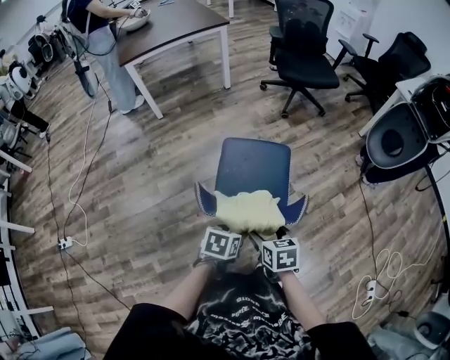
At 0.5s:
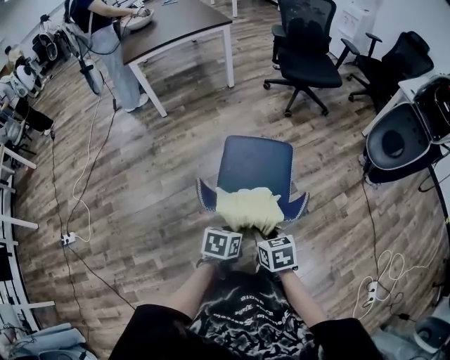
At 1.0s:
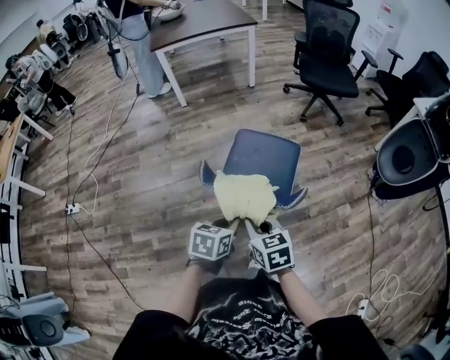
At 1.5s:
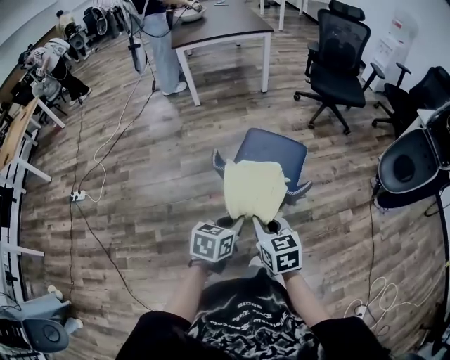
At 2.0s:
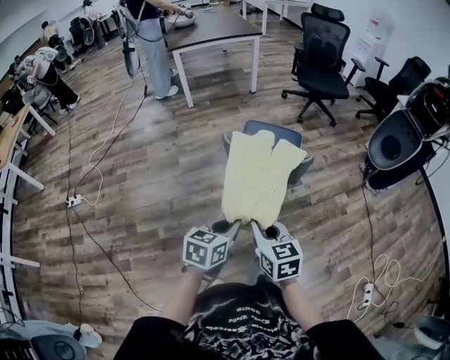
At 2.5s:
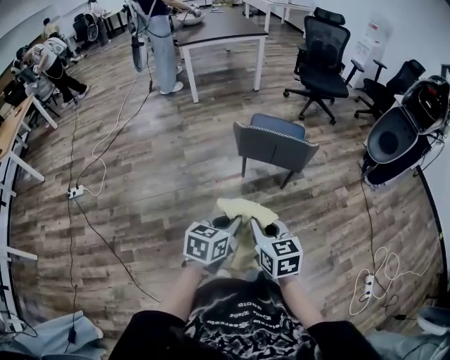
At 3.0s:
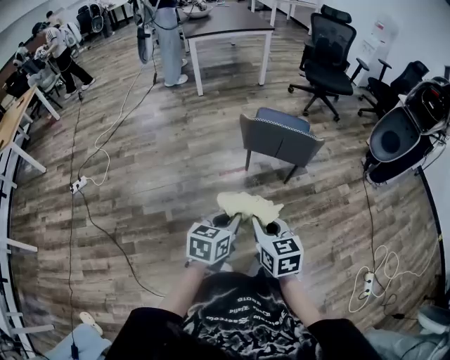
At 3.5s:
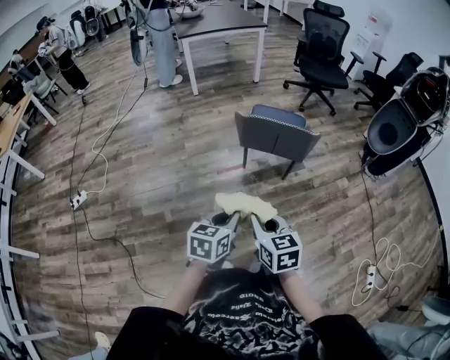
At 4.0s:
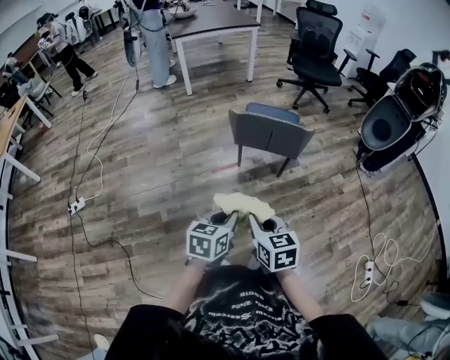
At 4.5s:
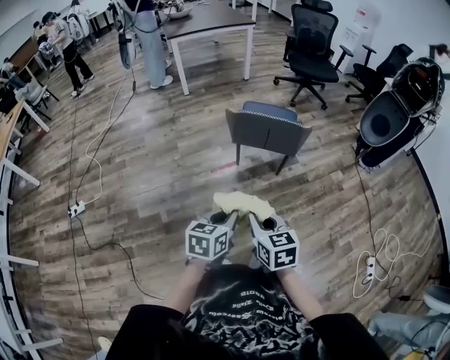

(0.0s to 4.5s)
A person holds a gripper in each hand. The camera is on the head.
0.0s - 2.0s: The grippers both shift backward and upward by about 25 cm. The left gripper rotates some 30 degrees, and closes. Meanwhile the right gripper swivels some 30 degrees, and closes its fingers.
2.0s - 4.5s: The left gripper goes roughly 10 cm backward and to the left; the right gripper is displaced backward by approximately 10 cm.

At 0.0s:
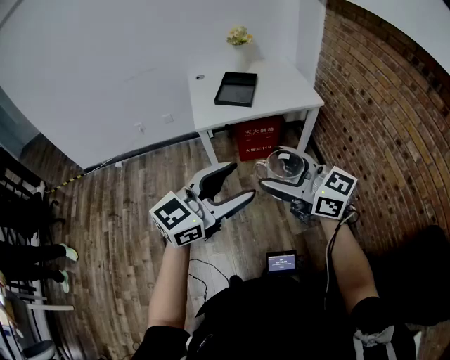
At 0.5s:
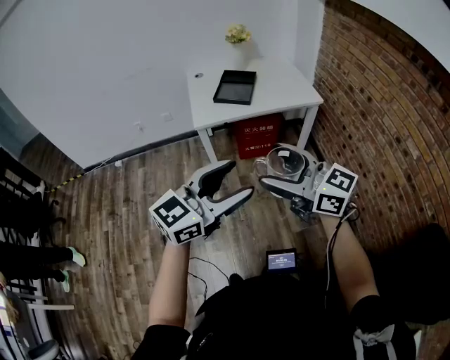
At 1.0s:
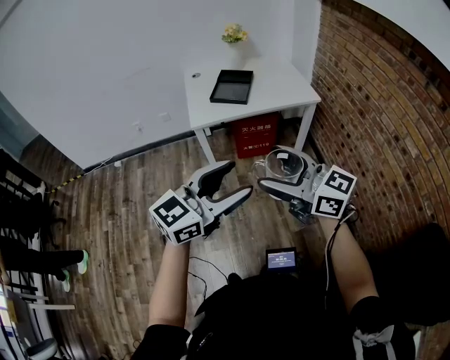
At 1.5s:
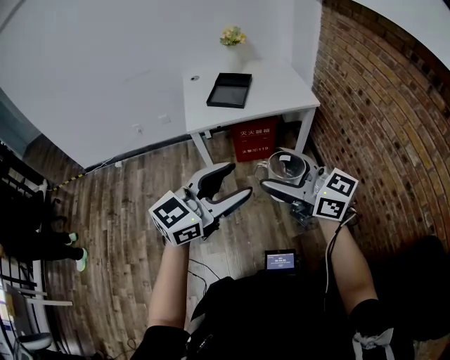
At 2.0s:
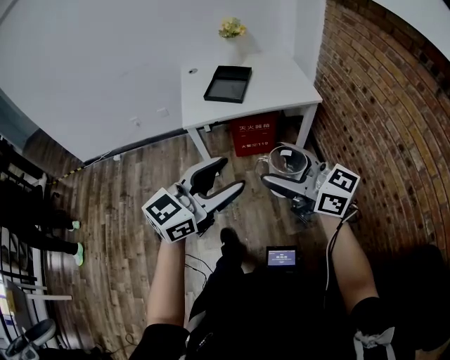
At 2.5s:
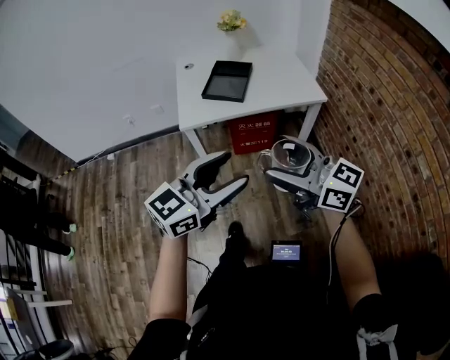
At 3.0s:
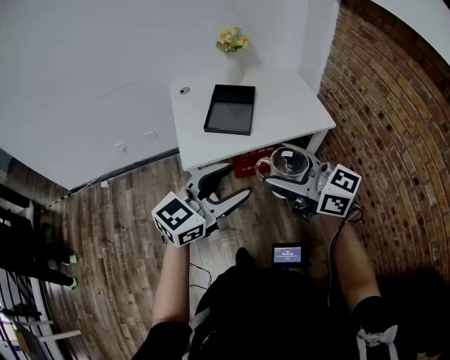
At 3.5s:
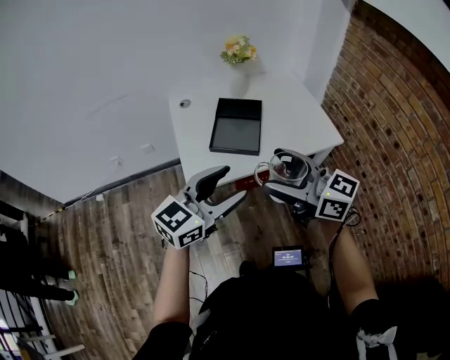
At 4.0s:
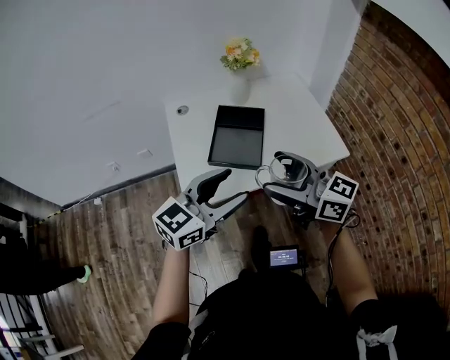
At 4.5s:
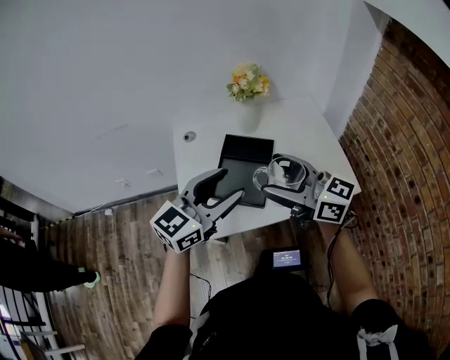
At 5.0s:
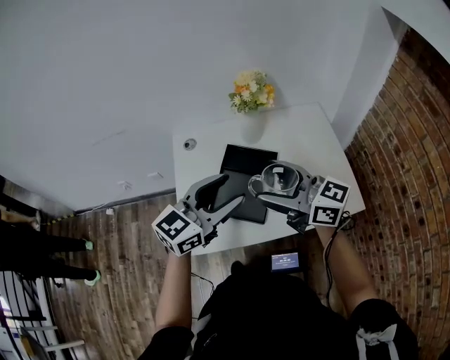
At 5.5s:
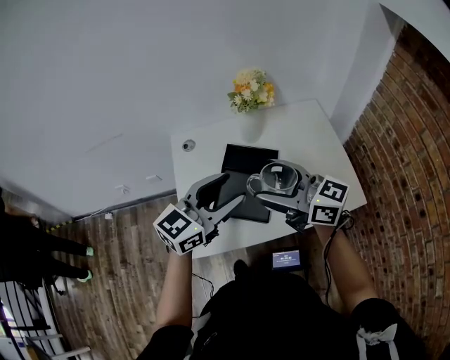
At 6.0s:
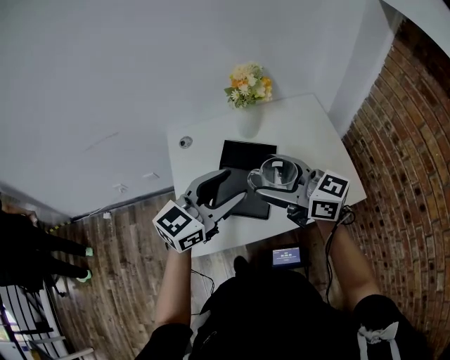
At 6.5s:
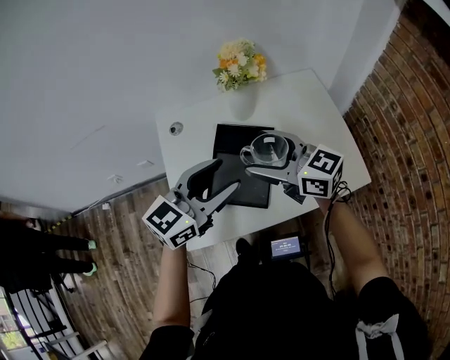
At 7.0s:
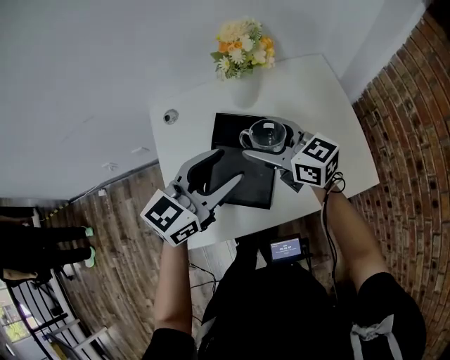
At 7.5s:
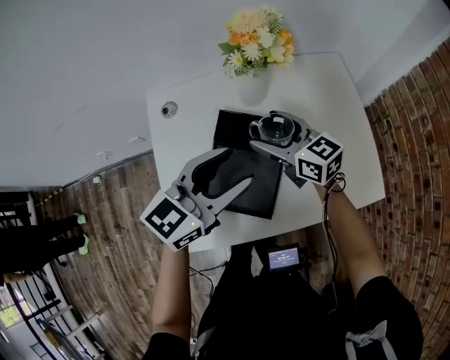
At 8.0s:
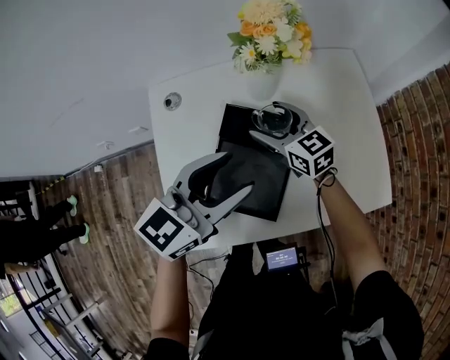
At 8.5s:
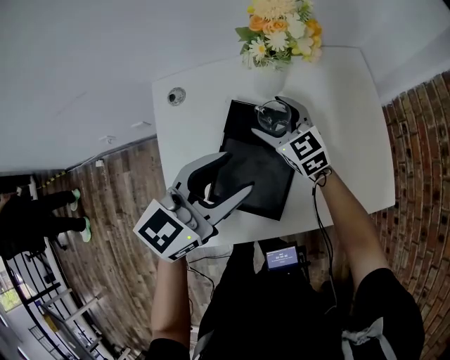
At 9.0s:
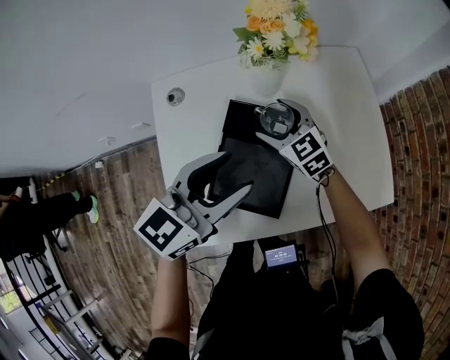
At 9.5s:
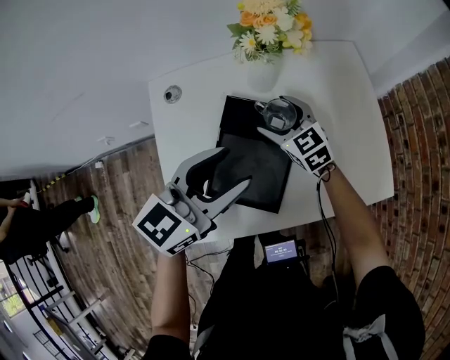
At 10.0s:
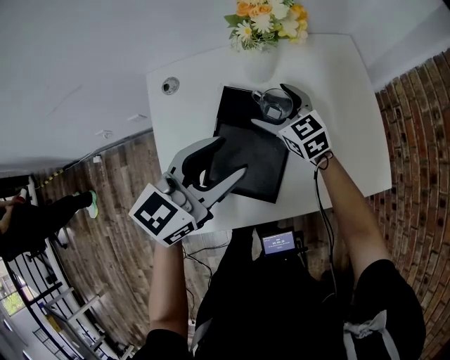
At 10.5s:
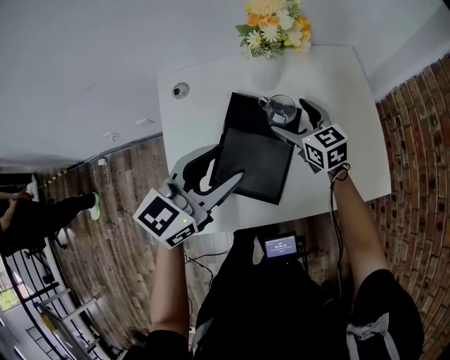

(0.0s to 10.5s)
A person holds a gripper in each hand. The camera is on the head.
0.0s - 2.0s: The left gripper heads to the right and forward, covering roughly 10 cm. The right gripper is displaced to the right by about 10 cm.
2.0s - 4.0s: The two grippers travel together, forward, some 40 cm.
4.0s - 6.5s: Both grippers travel together forward, roughly 25 cm.
6.5s - 8.5s: The right gripper shifts some 25 cm downward and forward, and changes its angle by roughly 30 degrees. Meanwhile the left gripper travels forward and downward by about 10 cm.
8.5s - 10.5s: The right gripper is displaced to the right by about 5 cm.

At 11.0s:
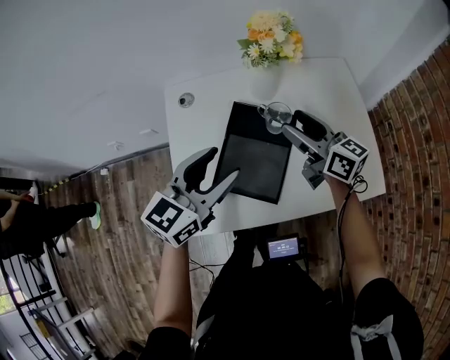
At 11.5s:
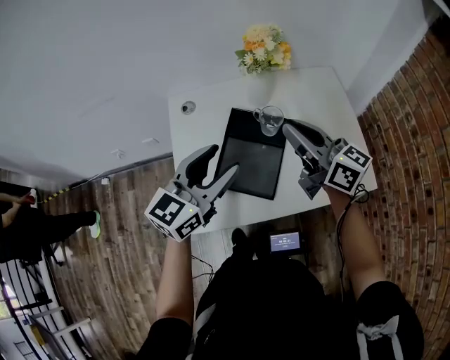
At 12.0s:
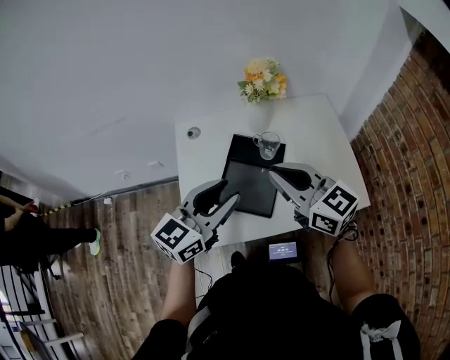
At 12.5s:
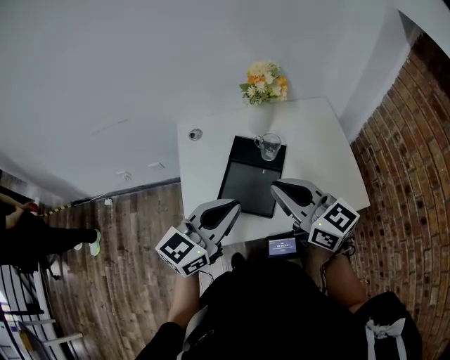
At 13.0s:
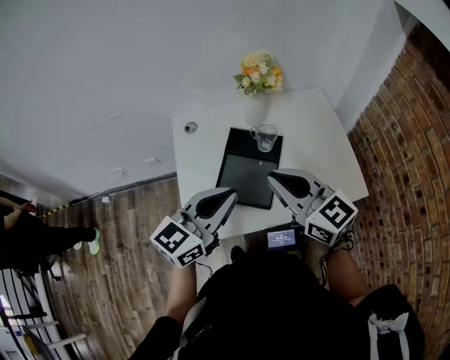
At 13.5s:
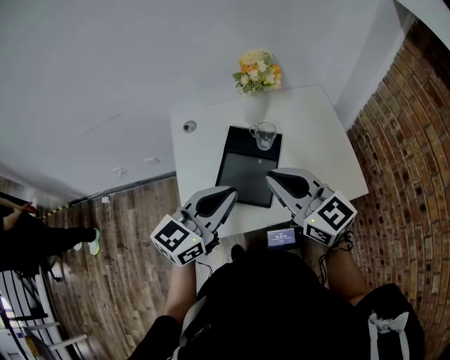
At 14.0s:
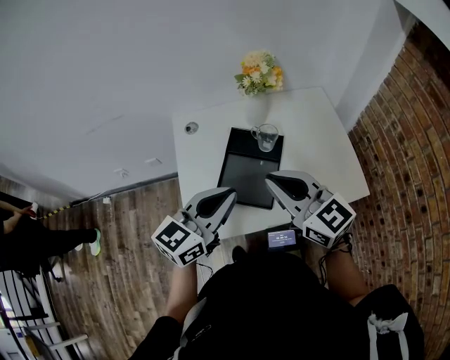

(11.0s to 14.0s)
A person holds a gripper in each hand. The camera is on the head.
11.0s - 12.5s: The right gripper is displaced backward and upward by about 20 cm, and closes up, while the left gripper goes approximately 10 cm backward and upward, and closes.
12.5s - 14.0s: The grippers move only a little.

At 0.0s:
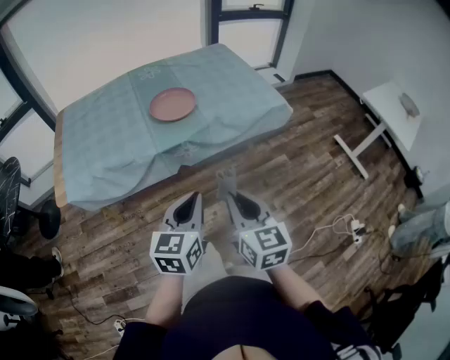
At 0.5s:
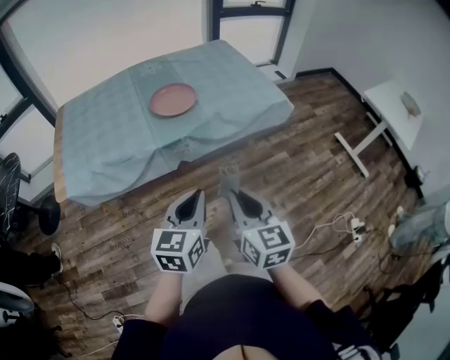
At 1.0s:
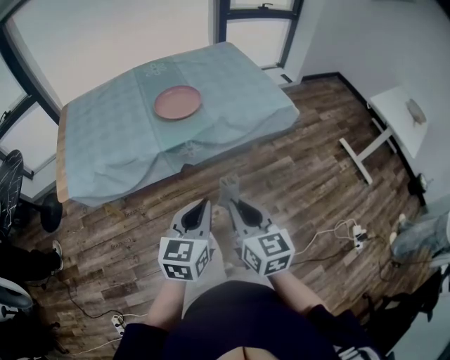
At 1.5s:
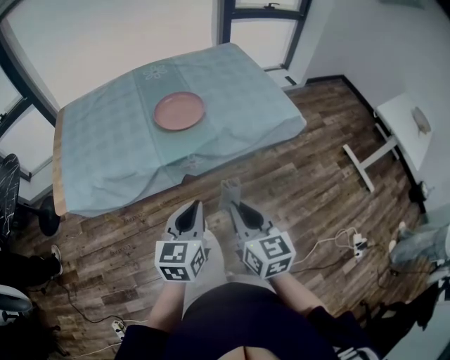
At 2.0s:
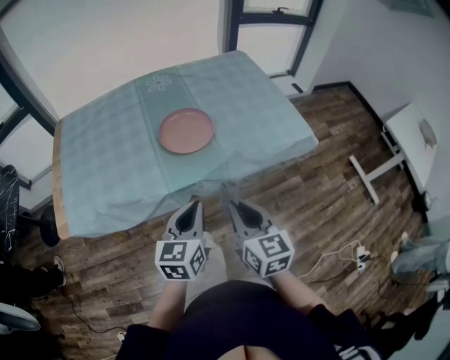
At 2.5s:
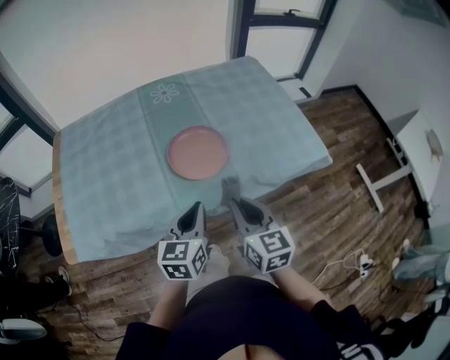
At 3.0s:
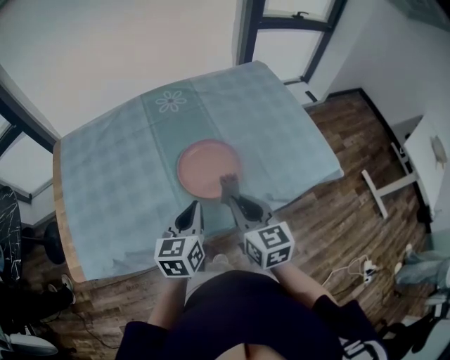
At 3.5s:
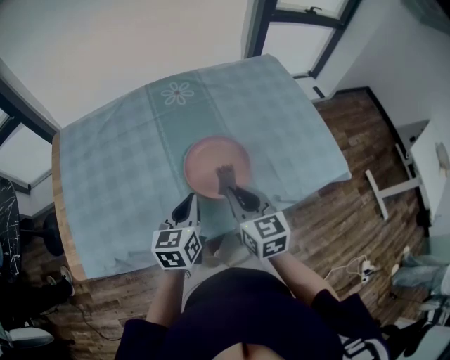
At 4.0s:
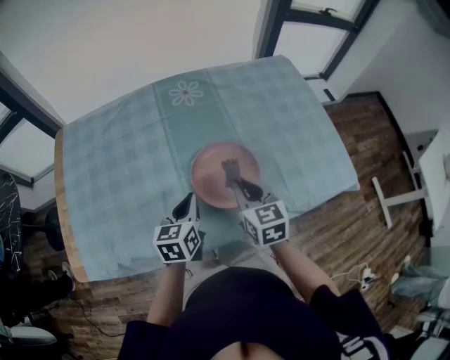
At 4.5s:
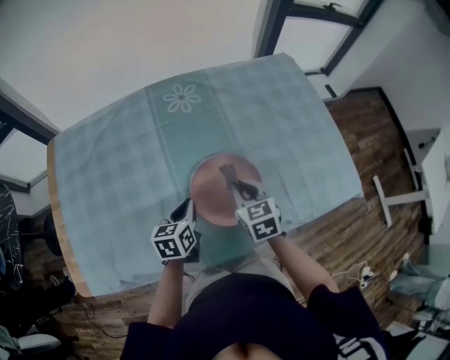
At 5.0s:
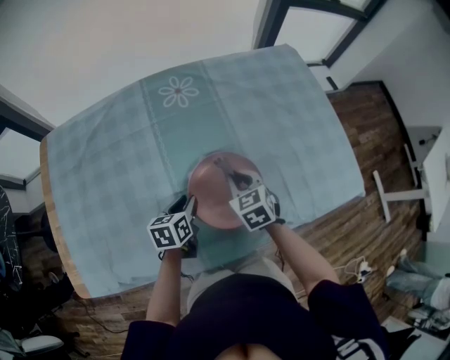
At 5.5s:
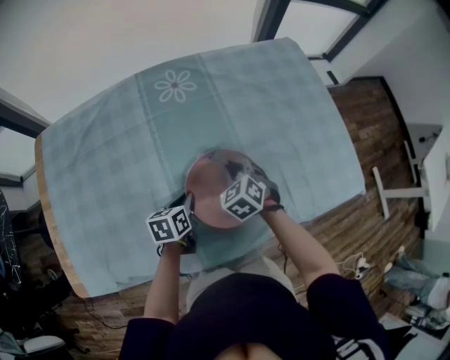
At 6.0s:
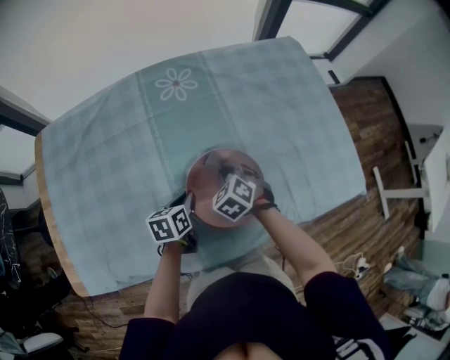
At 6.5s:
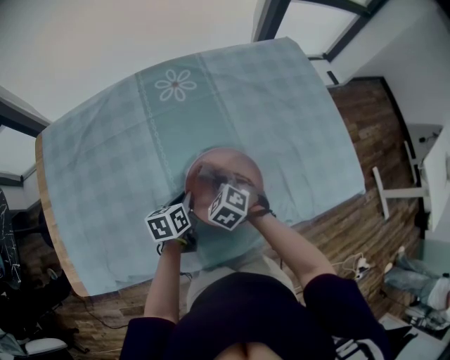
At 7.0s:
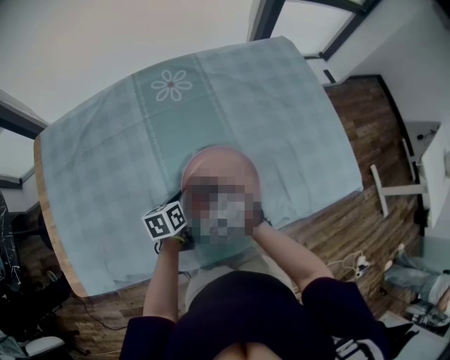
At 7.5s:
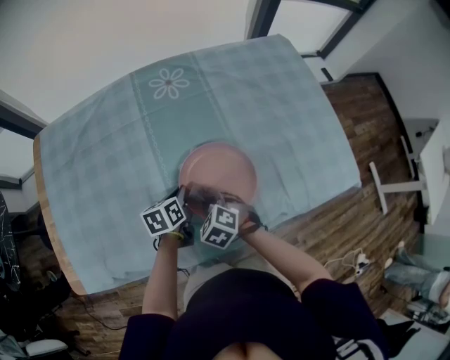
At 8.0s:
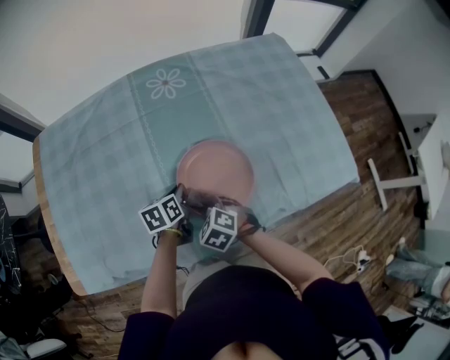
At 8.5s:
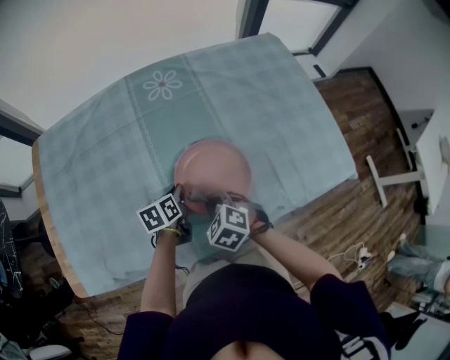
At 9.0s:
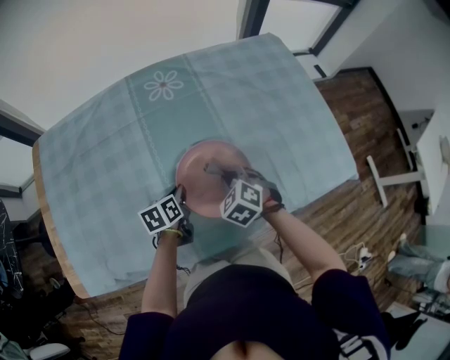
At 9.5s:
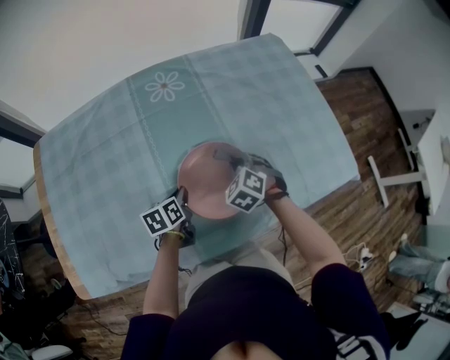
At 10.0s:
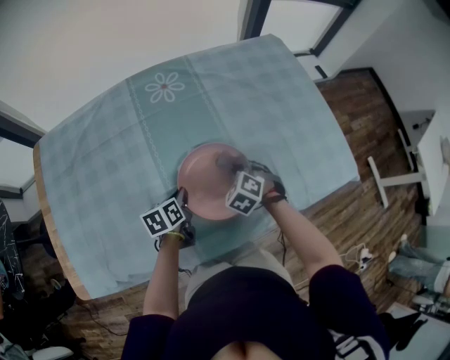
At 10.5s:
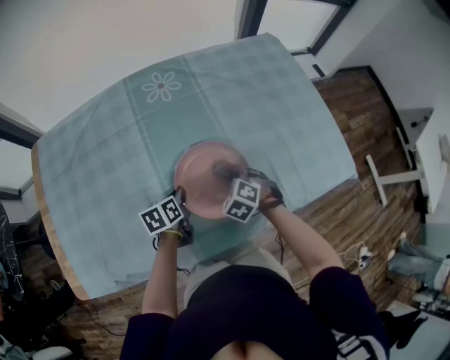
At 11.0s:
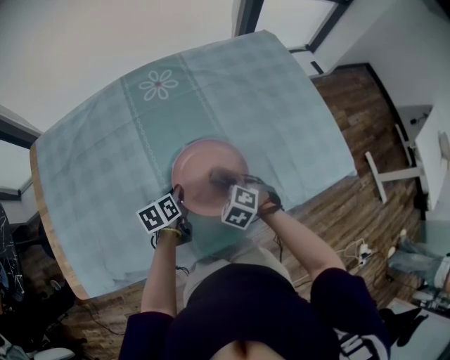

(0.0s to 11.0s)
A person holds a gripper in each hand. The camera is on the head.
0.0s - 2.0s: Both grippers travel together forward, some 20 cm.
2.0s - 3.5s: The left gripper goes roughly 30 cm forward and to the left. Meanwhile the right gripper moves forward, about 30 cm.
3.5s - 5.5s: The left gripper shifts about 20 cm downward and forward, and swivels about 30 degrees, while the right gripper heads forward and downward, covering about 25 cm, and turns by some 50 degrees.
5.5s - 7.5s: The right gripper heads backward and to the left, covering roughly 15 cm.
7.5s - 9.0s: The right gripper moves to the right and forward, about 10 cm.
9.0s - 11.0s: The right gripper shifts by roughly 5 cm.
